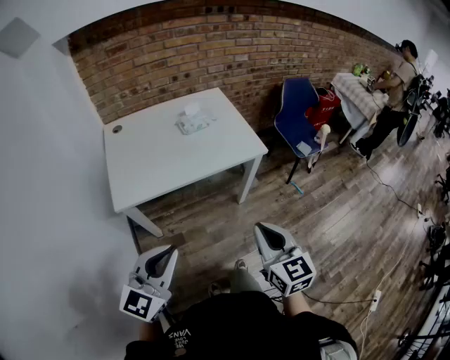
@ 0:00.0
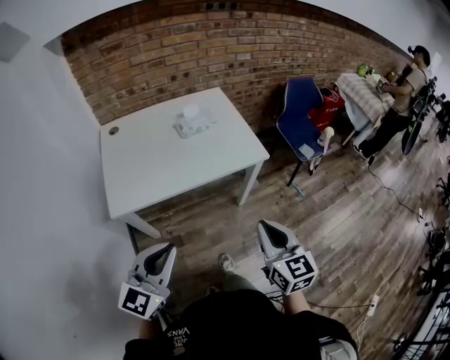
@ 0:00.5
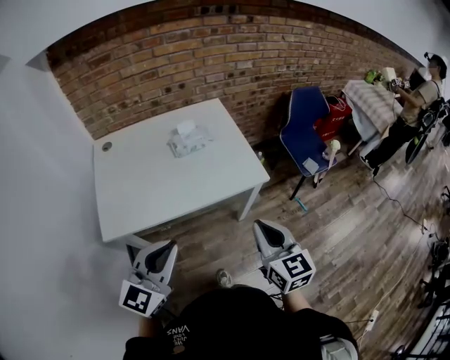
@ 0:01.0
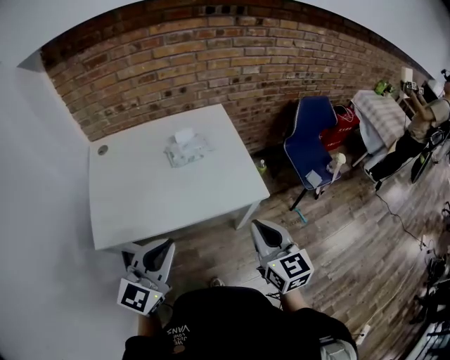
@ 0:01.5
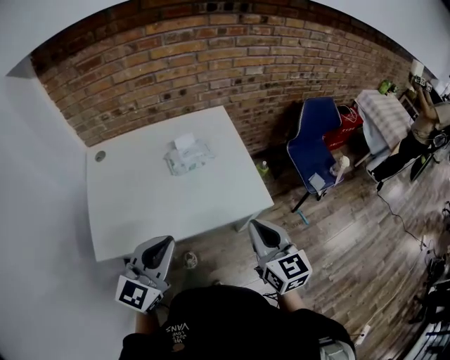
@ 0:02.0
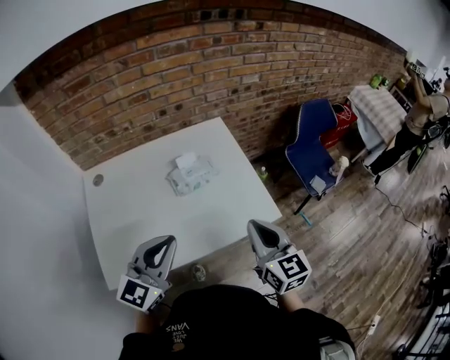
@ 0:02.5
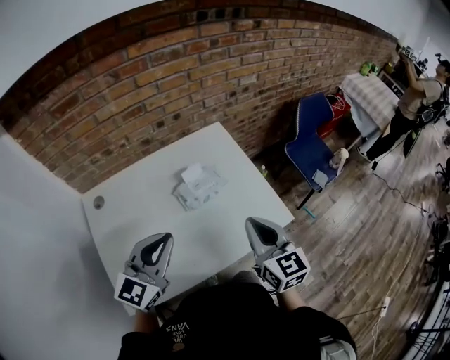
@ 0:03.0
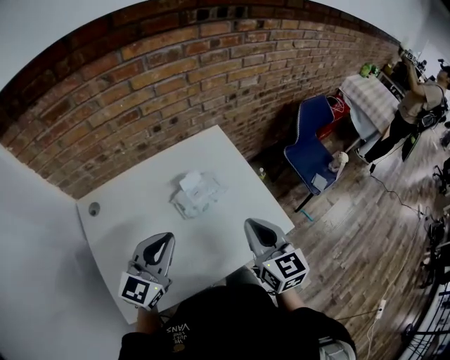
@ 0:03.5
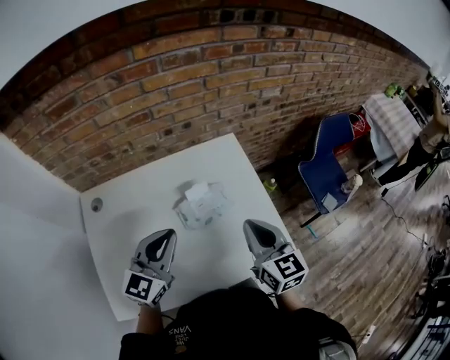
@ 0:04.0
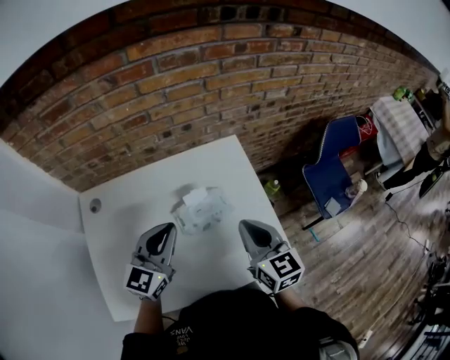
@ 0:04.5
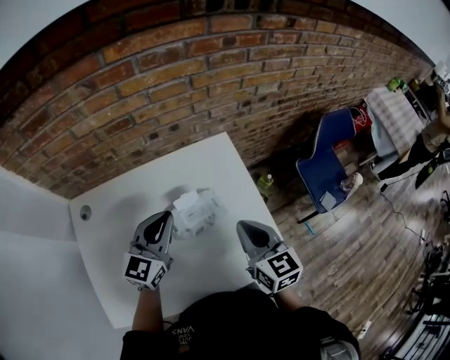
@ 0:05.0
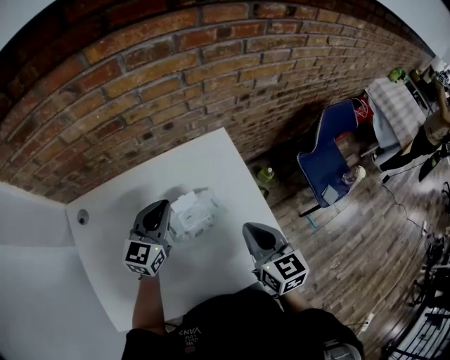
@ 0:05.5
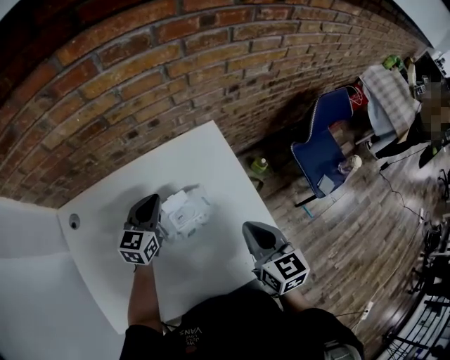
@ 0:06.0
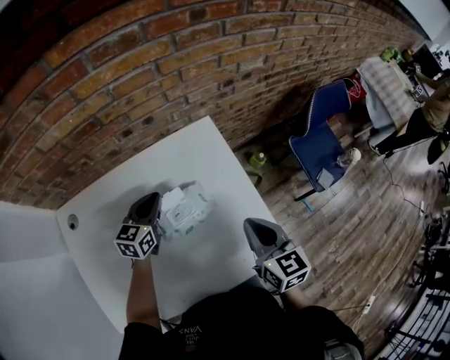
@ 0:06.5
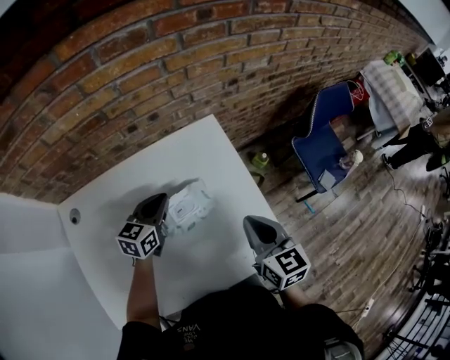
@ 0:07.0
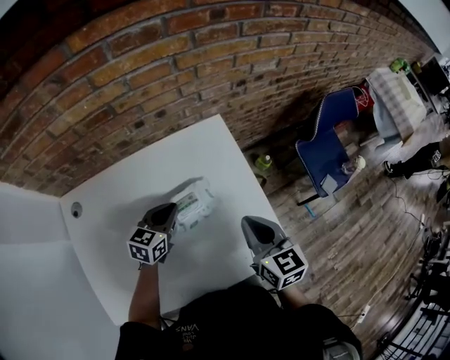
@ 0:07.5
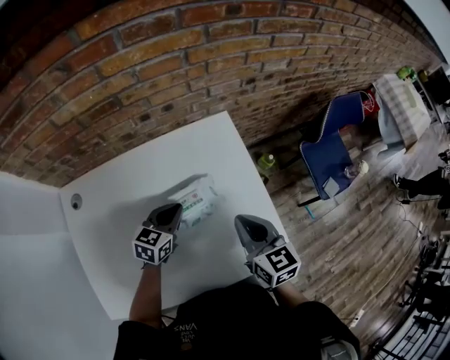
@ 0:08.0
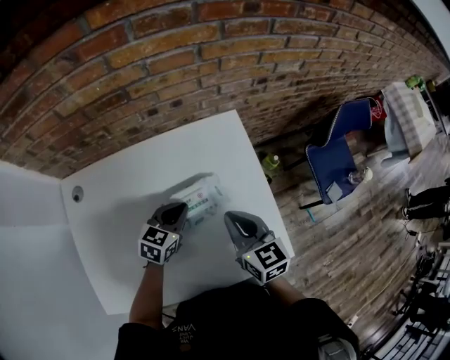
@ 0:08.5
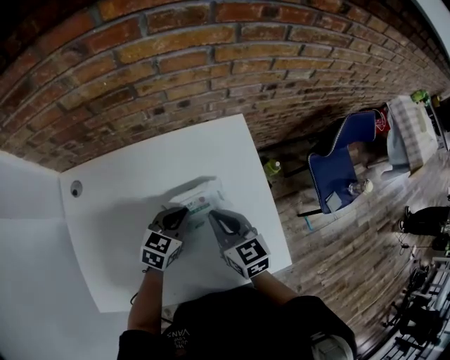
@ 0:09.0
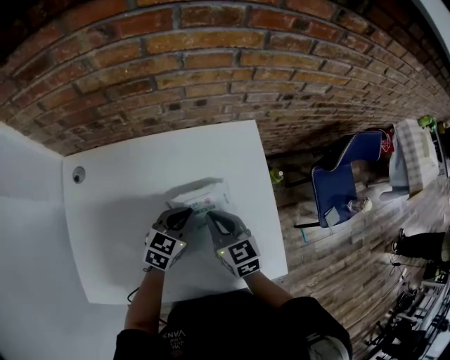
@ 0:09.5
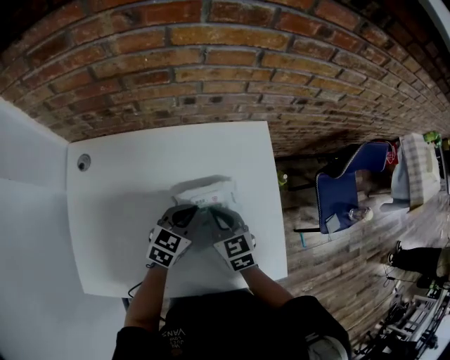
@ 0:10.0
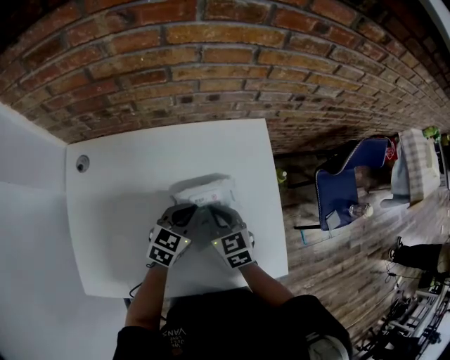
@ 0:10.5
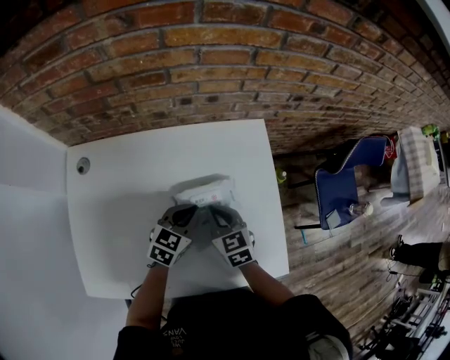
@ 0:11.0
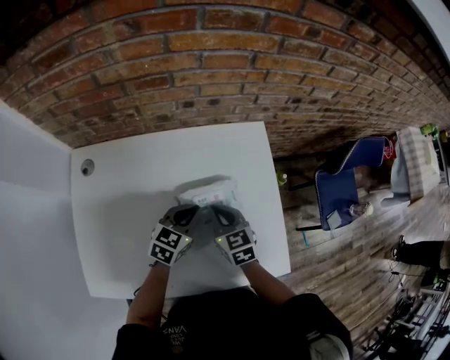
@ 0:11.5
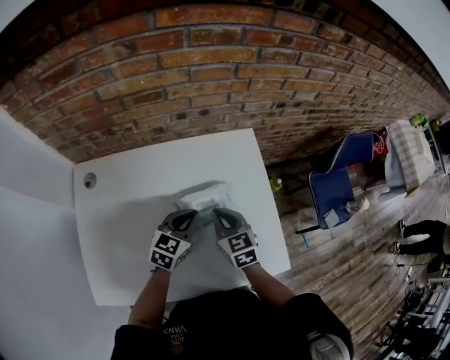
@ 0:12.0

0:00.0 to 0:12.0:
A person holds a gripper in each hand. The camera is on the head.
0:00.0 to 0:02.0: The two grippers go about 30 cm forward.
0:02.0 to 0:04.0: Both grippers travel together forward and to the left, some 25 cm.
0:04.0 to 0:06.0: The right gripper is displaced downward, forward and to the right by some 10 cm. The left gripper goes approximately 25 cm forward and downward.
0:06.0 to 0:08.0: The left gripper travels backward and downward by some 10 cm.
0:08.0 to 0:10.0: The right gripper travels to the left and downward by some 15 cm, and swivels approximately 20 degrees.
0:10.0 to 0:12.0: The grippers stay close to where they were, moving slightly.

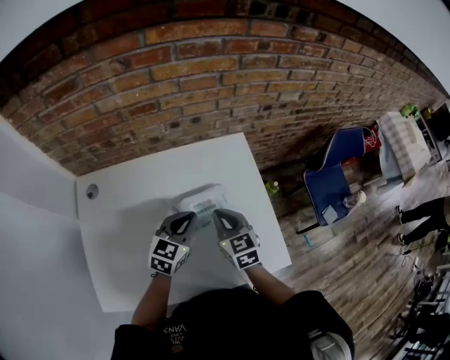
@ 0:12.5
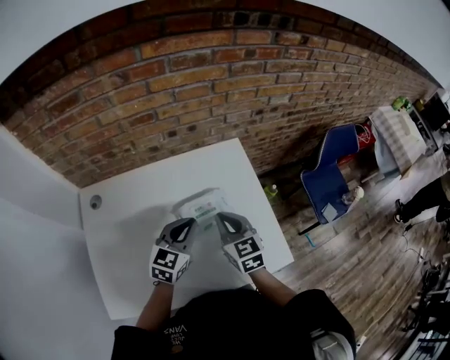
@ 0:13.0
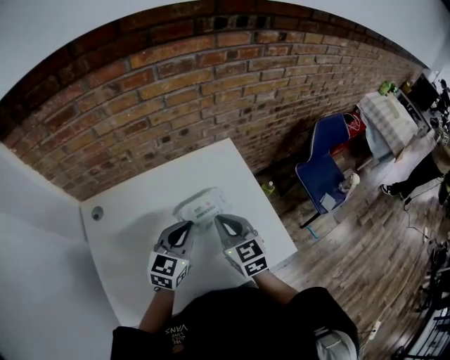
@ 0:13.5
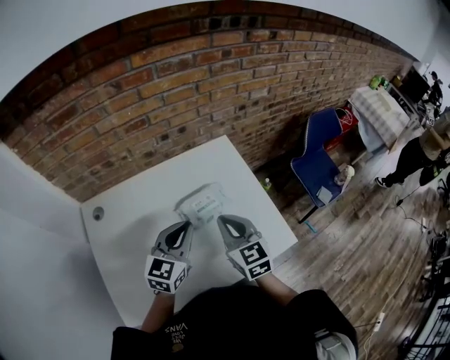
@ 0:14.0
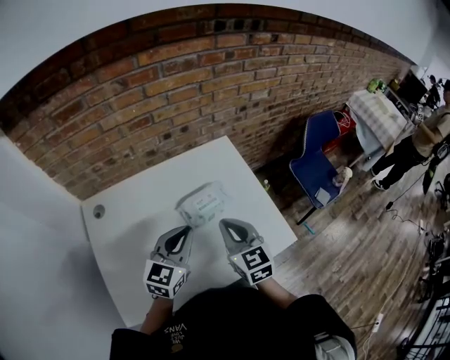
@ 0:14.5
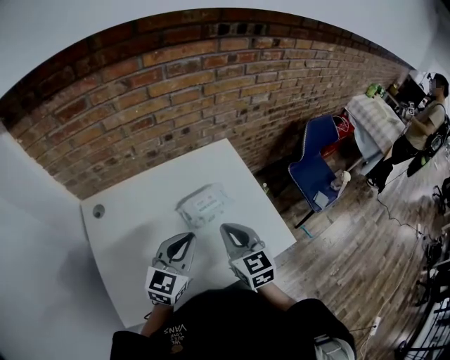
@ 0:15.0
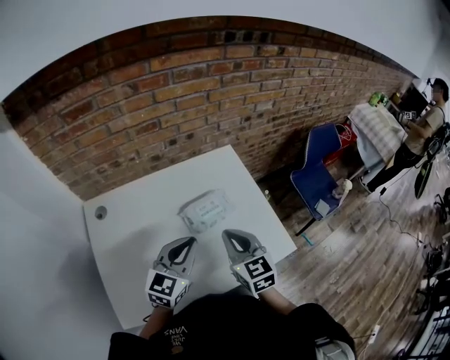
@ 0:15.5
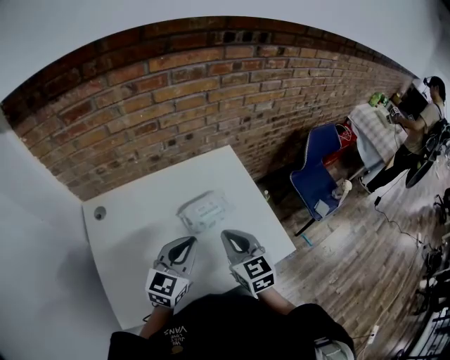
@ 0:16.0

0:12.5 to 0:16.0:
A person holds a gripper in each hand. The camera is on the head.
0:12.5 to 0:14.5: The two grippers go roughly 15 cm backward and upward.
0:14.5 to 0:16.0: There are only small adjustments of the grippers.

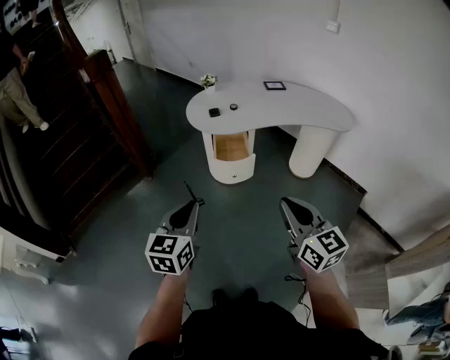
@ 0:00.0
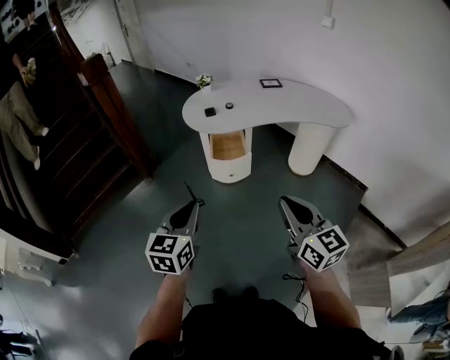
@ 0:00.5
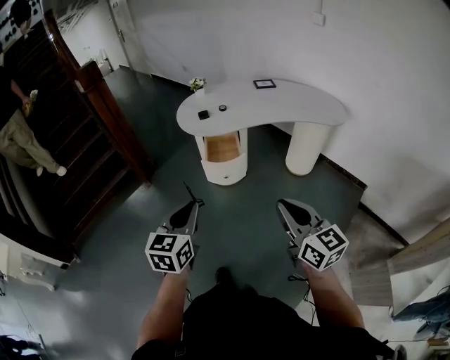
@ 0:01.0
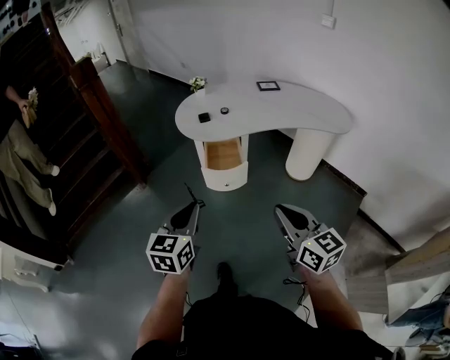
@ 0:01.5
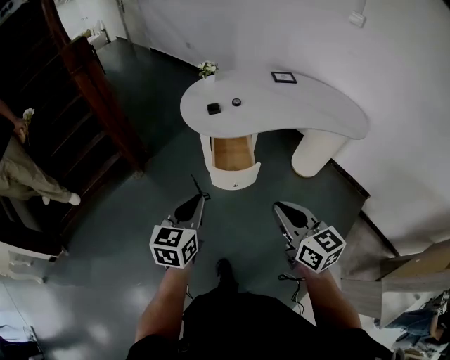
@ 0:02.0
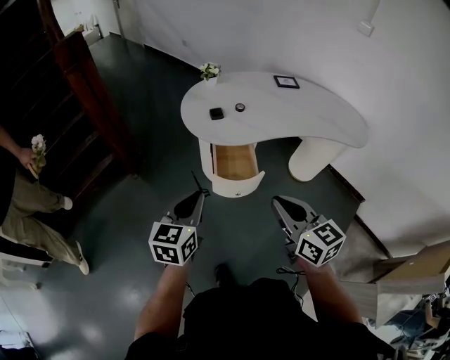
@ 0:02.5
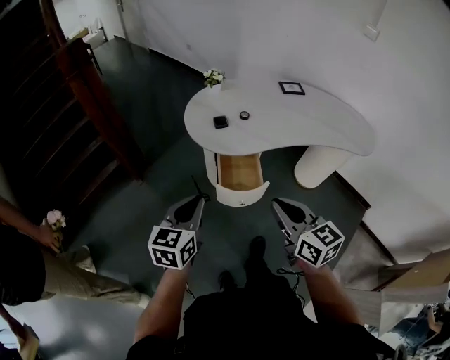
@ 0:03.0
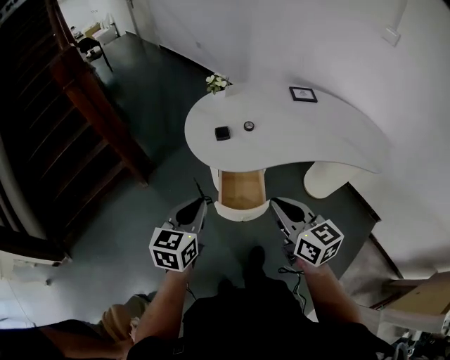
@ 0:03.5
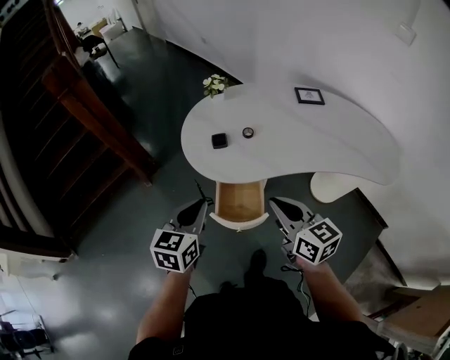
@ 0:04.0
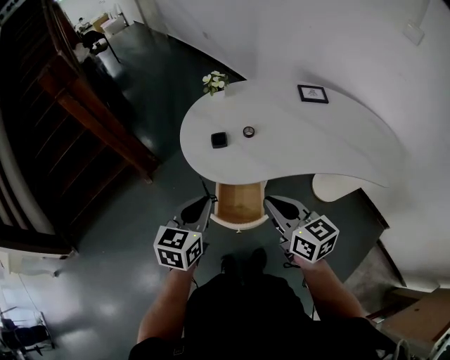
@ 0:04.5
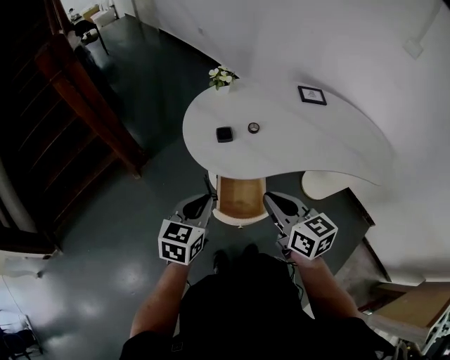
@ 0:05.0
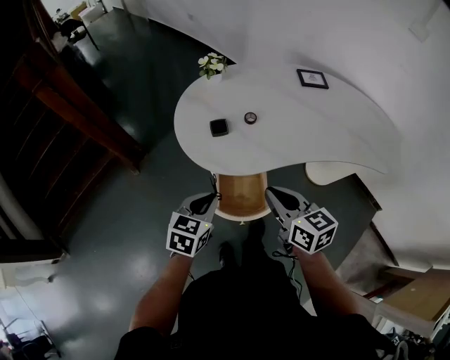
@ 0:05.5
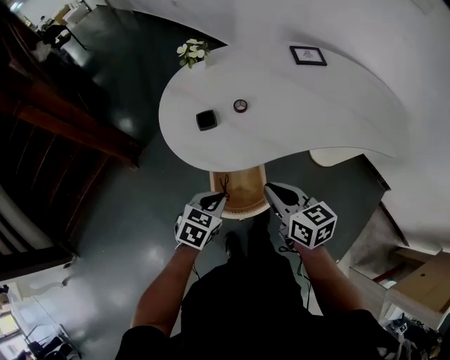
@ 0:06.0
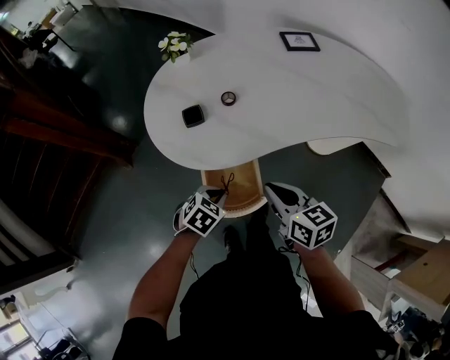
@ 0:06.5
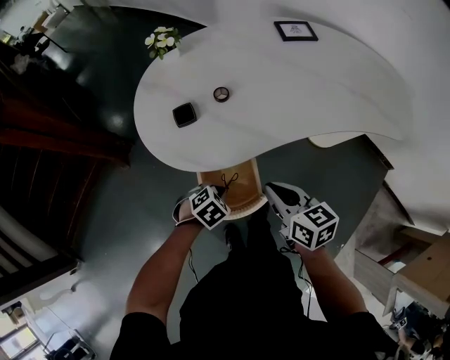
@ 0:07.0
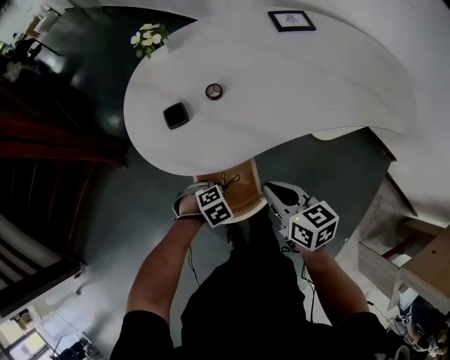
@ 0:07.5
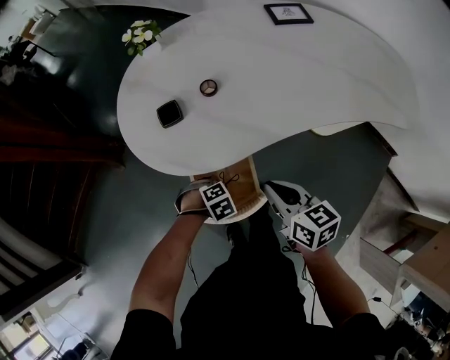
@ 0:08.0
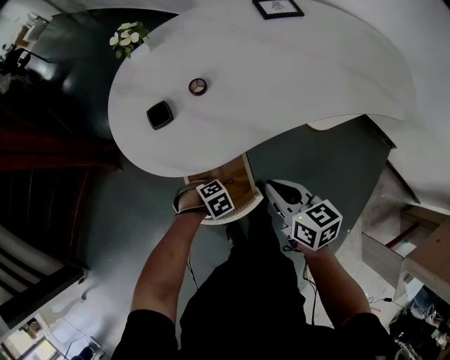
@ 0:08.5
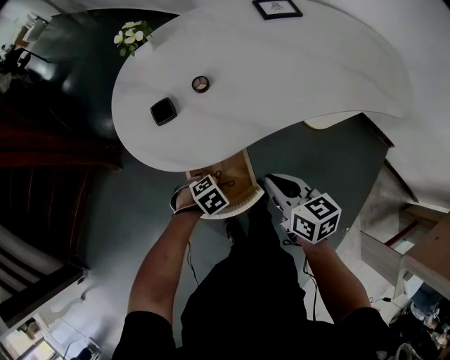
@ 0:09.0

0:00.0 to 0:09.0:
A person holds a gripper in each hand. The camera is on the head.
0:00.0 to 0:02.0: The two grippers go approximately 15 cm forward.
0:02.0 to 0:04.5: Both grippers move forward, about 30 cm.
0:04.5 to 0:07.0: The right gripper moves downward, about 15 cm, and rotates roughly 20 degrees. Meanwhile the left gripper shifts about 30 cm downward, and tips its fingers downward by approximately 50 degrees.
0:07.0 to 0:09.0: The left gripper is displaced downward by roughly 5 cm.

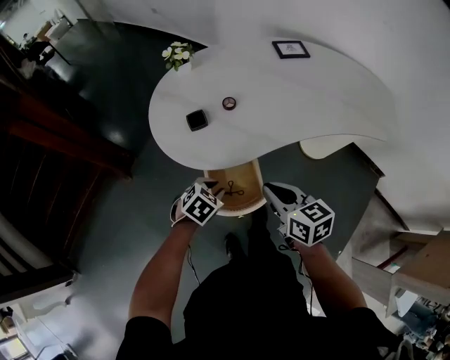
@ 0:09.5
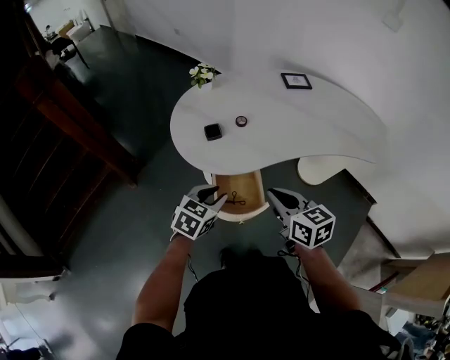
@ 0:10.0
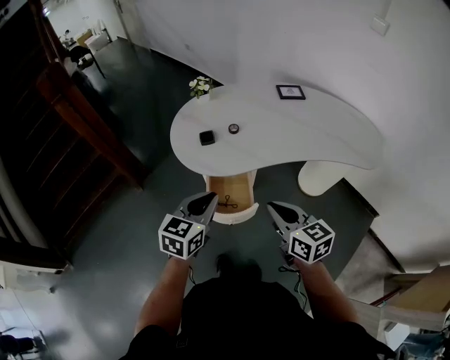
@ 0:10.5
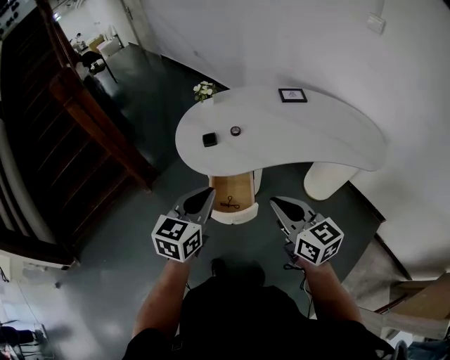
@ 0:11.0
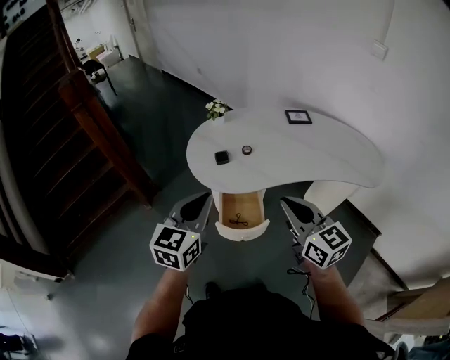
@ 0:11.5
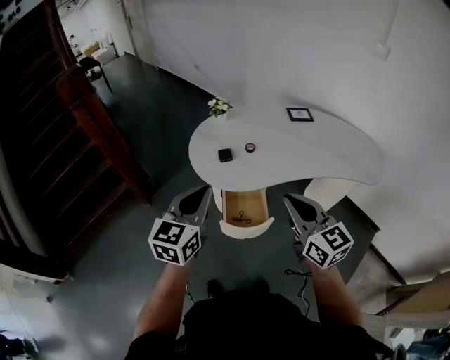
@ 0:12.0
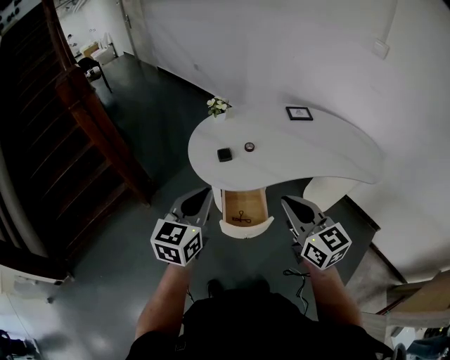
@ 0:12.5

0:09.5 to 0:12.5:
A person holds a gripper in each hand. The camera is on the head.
0:09.5 to 0:11.0: The left gripper travels upward by roughly 30 cm, tips its fingers upward by approximately 40 degrees, and closes; the right gripper goes about 20 cm upward, backward and to the right, and rotates some 20 degrees.
0:11.0 to 0:12.5: The two grippers go some 10 cm to the left.
